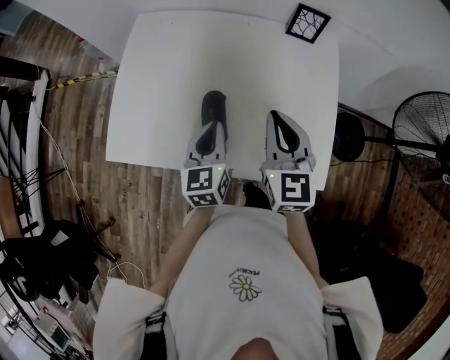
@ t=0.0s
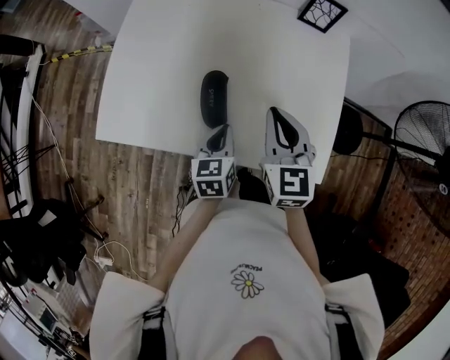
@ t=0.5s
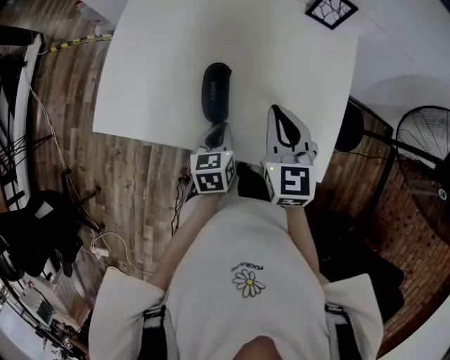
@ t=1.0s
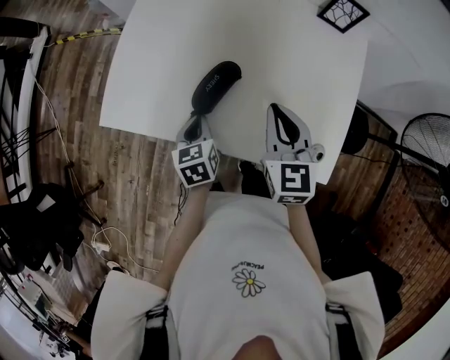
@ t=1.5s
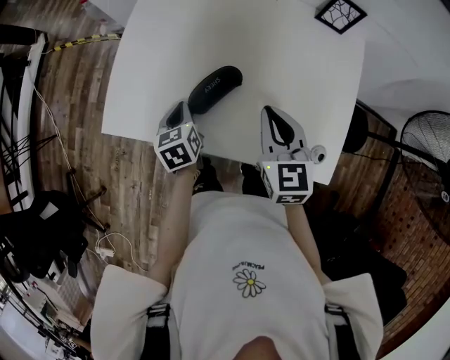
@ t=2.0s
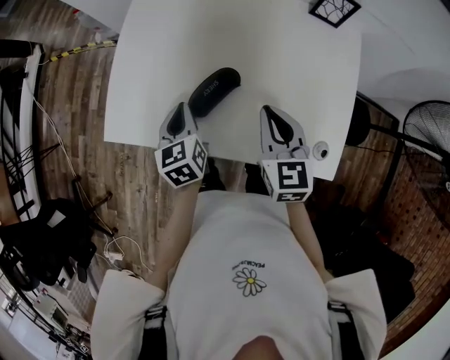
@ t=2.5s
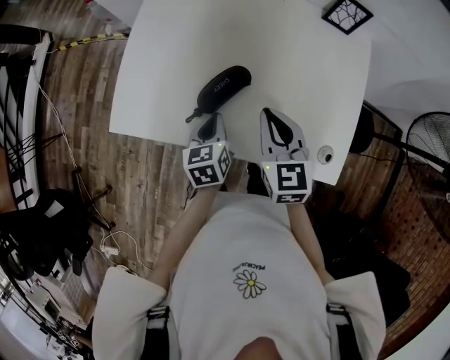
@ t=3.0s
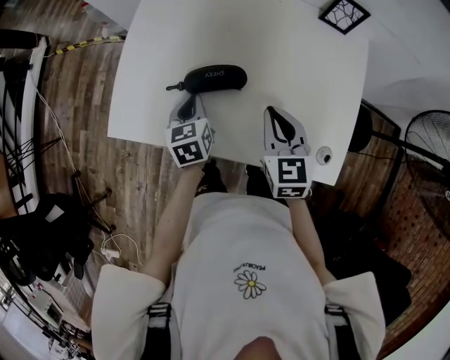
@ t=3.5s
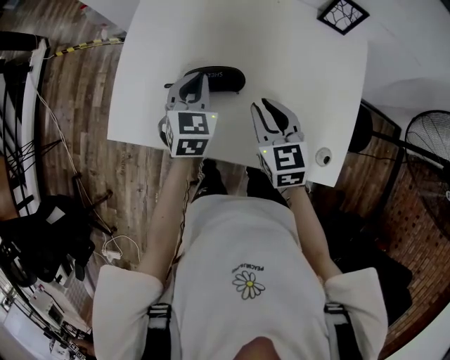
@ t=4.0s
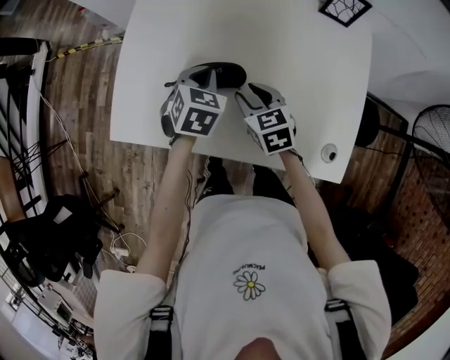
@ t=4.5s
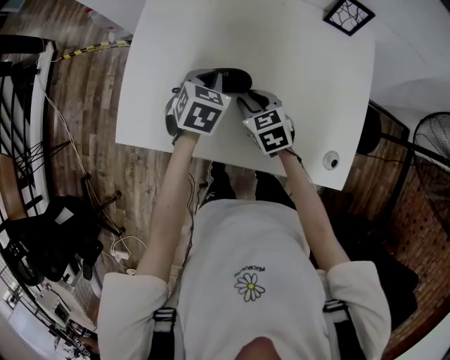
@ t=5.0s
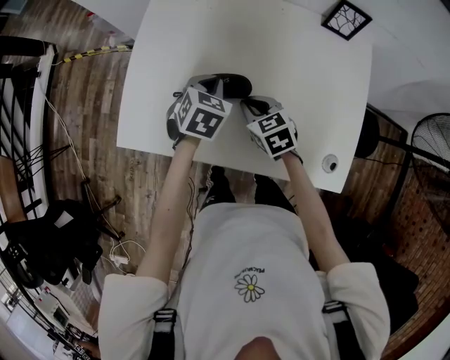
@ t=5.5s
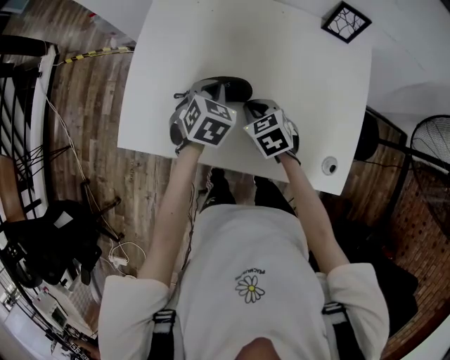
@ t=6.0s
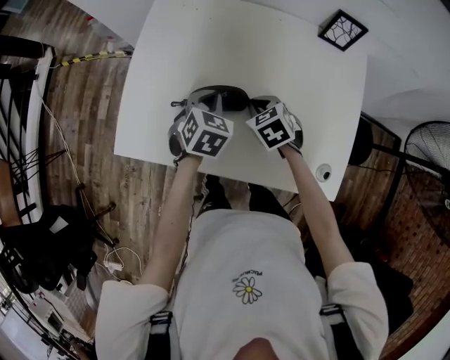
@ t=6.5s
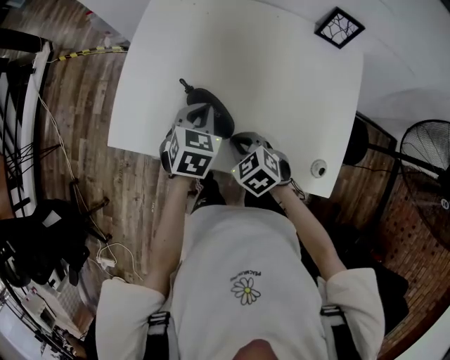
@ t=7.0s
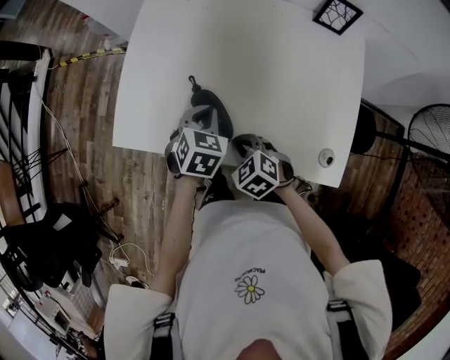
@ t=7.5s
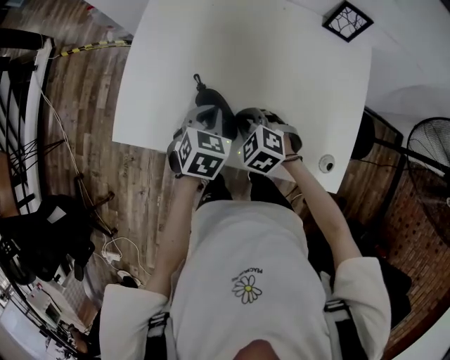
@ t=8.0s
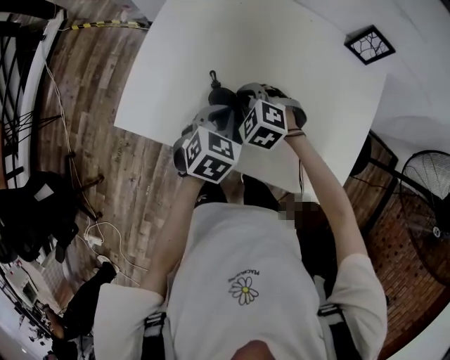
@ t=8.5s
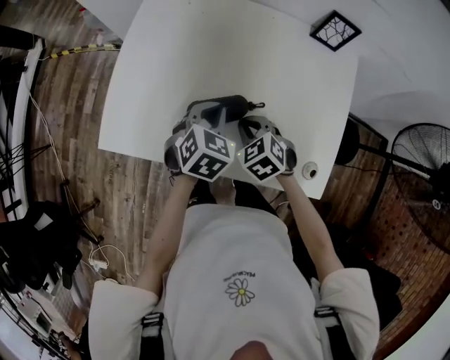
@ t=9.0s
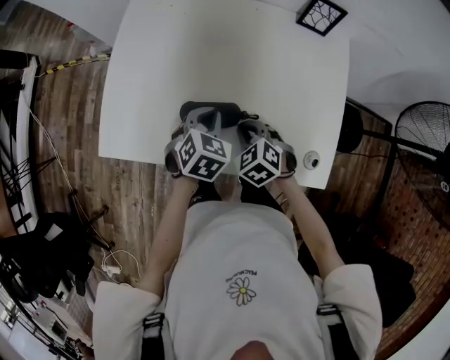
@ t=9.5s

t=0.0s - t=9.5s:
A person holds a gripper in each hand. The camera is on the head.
t=0.0s - t=2.0s: The left gripper travels to the left and downward by some 15 cm, and rotates approximately 30 degrees; the right gripper moves downward and to the left, some 10 cm.
t=2.0s - t=4.0s: The right gripper moves about 5 cm. Meanwhile the left gripper heads upward, forward and to the right, covering roughly 10 cm, and swivels roughly 40 degrees.
t=4.0s - t=5.5s: The right gripper shifts about 10 cm downward. The left gripper rotates some 20 degrees.
t=5.5s - t=7.5s: The right gripper travels backward by about 10 cm, and swivels approximately 30 degrees. Meanwhile the left gripper goes roughly 10 cm backward.
t=7.5s - t=9.5s: Both grippers move to the right, approximately 5 cm. The right gripper goes forward and returns, about 15 cm each way.

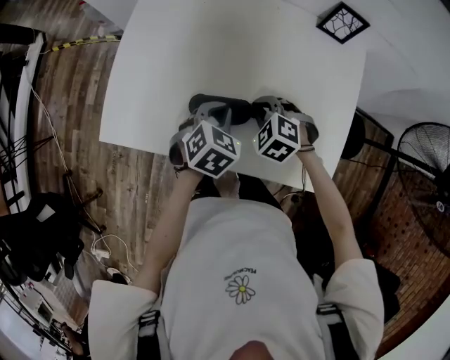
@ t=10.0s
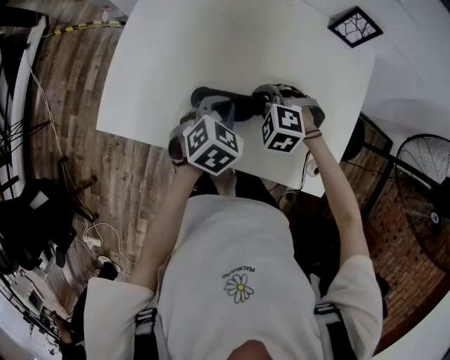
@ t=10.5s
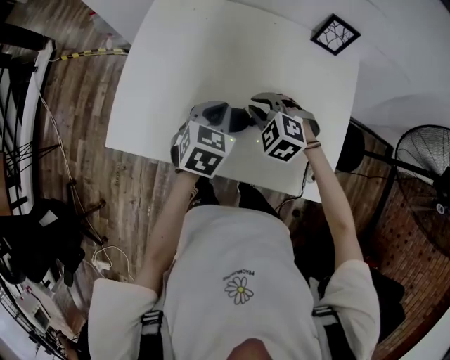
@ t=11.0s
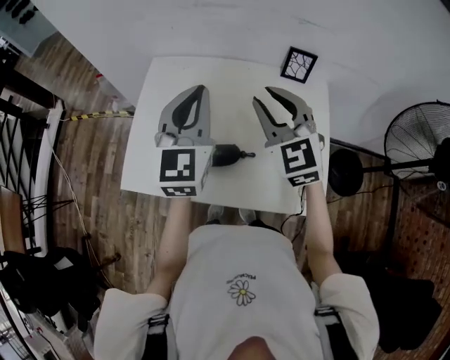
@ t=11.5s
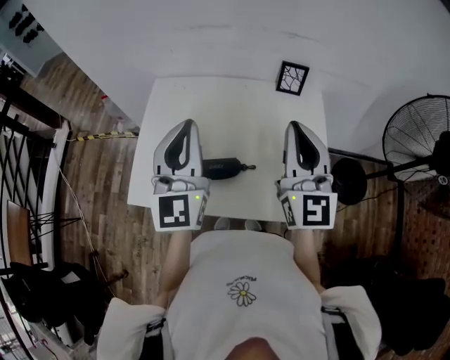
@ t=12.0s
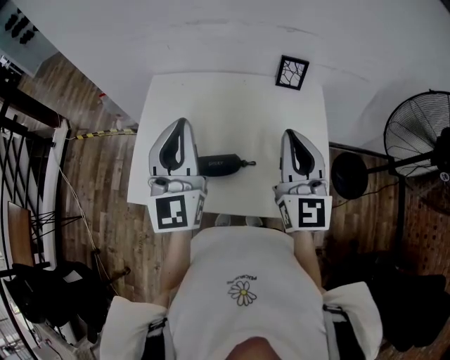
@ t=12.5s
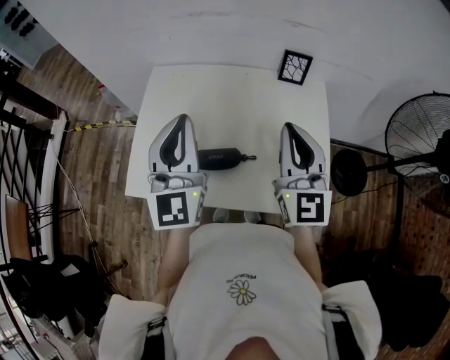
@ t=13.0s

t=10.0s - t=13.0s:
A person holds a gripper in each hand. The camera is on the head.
t=10.0s - t=11.5s: The two grippers go some 30 cm upward. The right gripper tips its fingers upward by about 50 degrees, and opens its fingers; the left gripper angles its fingers upward, by approximately 50 degrees.
t=11.5s - t=13.0s: The left gripper shifts approximately 5 cm backward. The right gripper goes some 10 cm backward and to the right, swivels roughly 30 degrees, and closes.

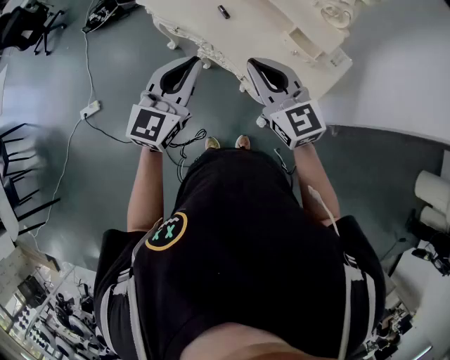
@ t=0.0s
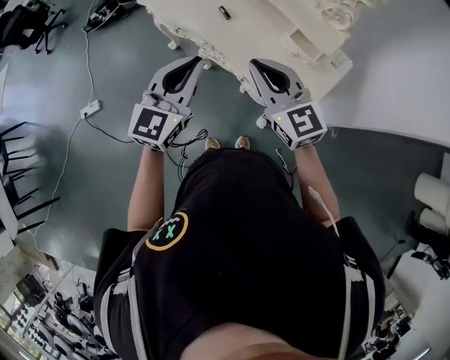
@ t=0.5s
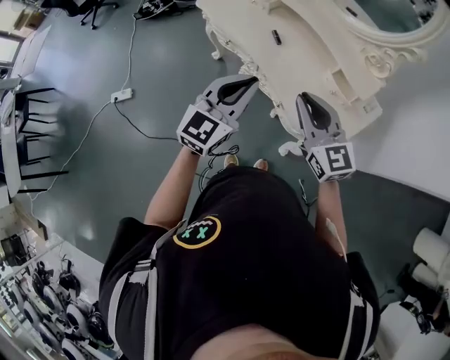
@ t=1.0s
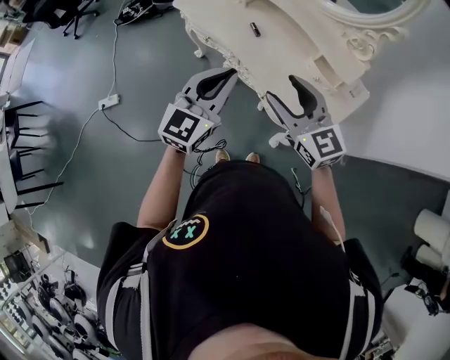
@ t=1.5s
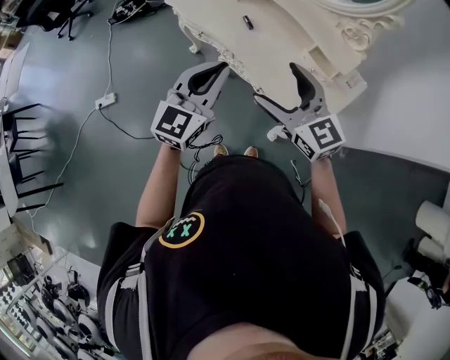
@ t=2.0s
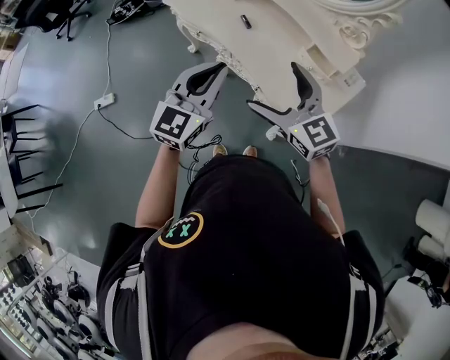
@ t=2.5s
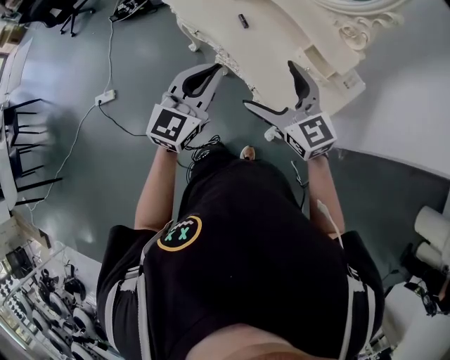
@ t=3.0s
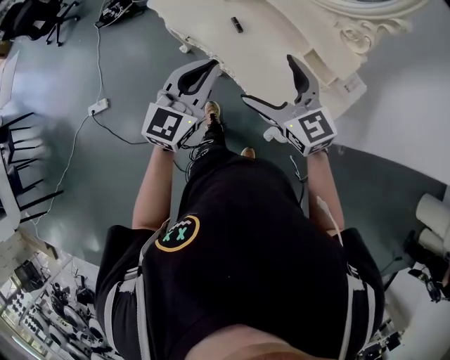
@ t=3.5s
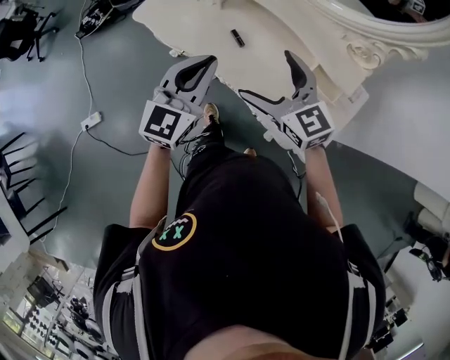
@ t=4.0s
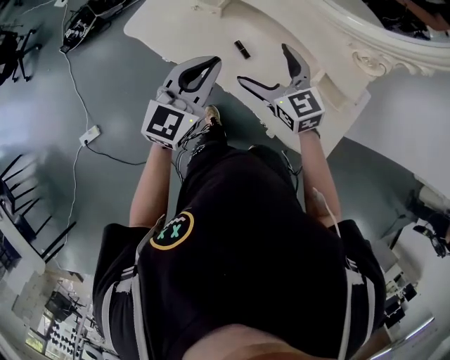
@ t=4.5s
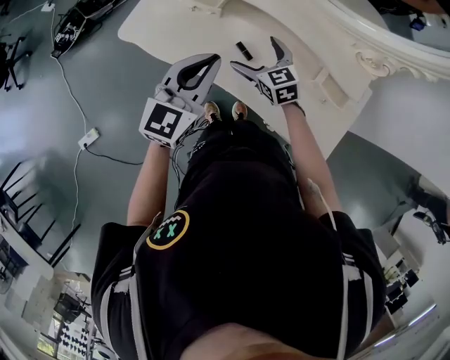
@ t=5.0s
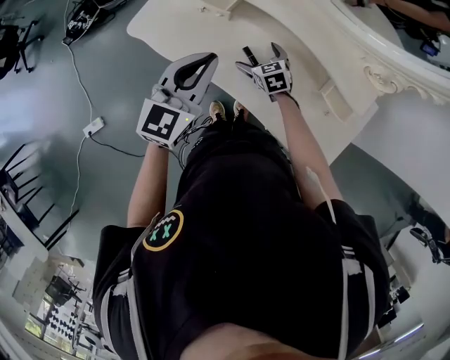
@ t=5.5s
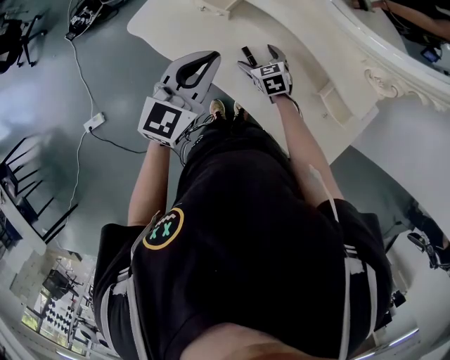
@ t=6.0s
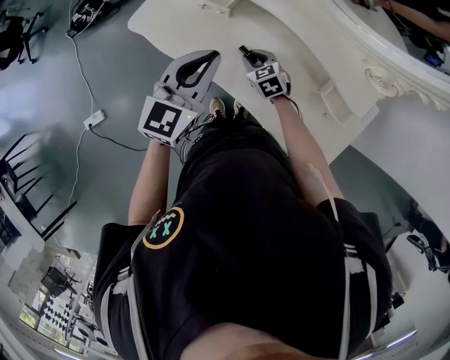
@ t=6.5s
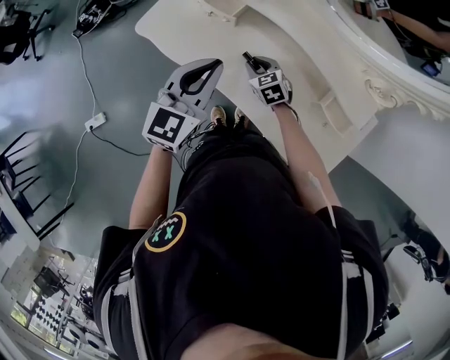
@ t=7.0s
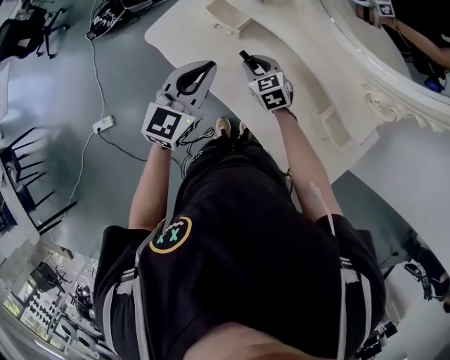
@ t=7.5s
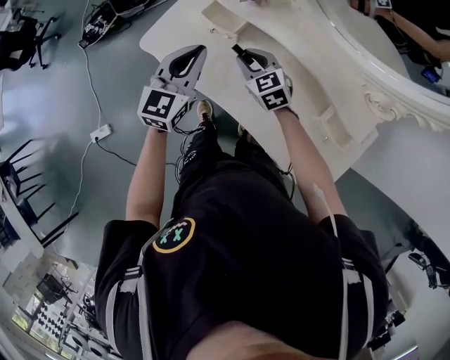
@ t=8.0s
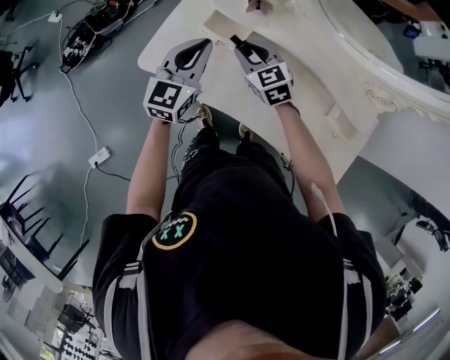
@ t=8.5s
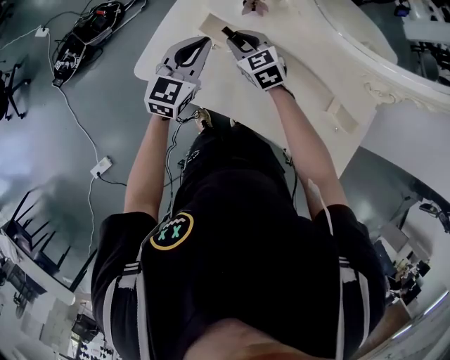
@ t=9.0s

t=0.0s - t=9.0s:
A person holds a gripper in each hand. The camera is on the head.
t=0.0s - t=2.0s: The right gripper opens.
t=2.0s - t=4.5s: The grippers both shift forward by some 30 cm. The right gripper rotates approximately 20 degrees.
t=4.5s - t=7.0s: The right gripper shifts about 20 cm downward, swivels roughly 20 degrees, and closes; the left gripper heads forward, covering about 5 cm.
t=7.0s - t=9.0s: The left gripper goes roughly 20 cm forward. Meanwhile the right gripper goes roughly 25 cm forward, upward and to the left.

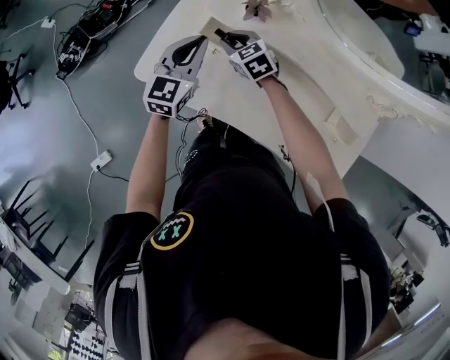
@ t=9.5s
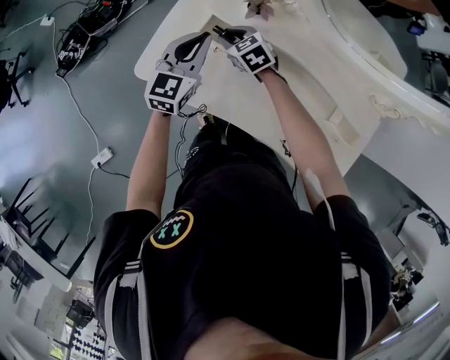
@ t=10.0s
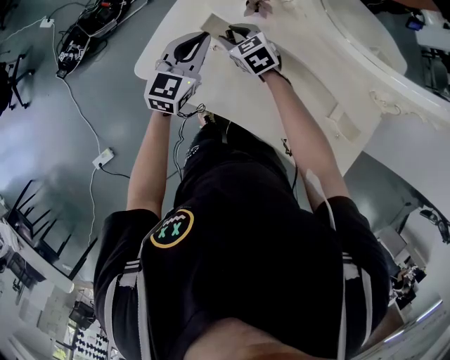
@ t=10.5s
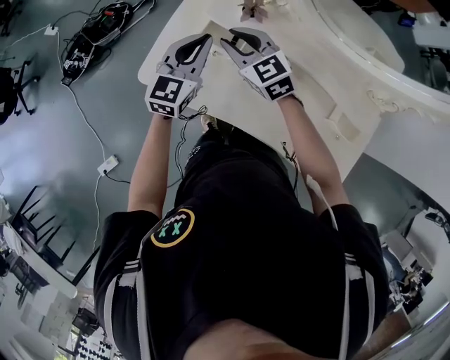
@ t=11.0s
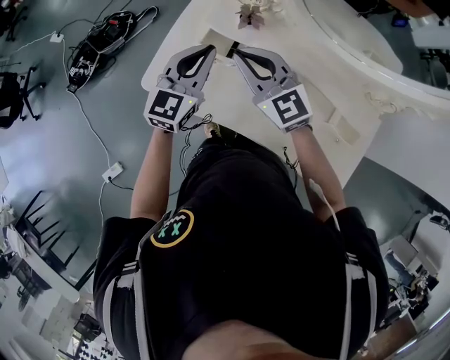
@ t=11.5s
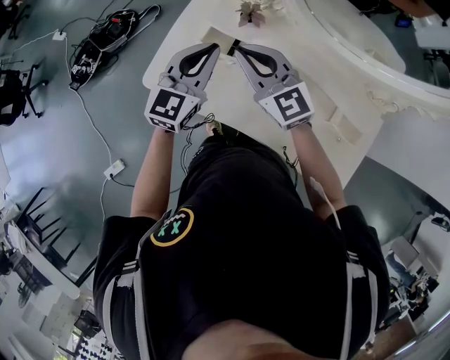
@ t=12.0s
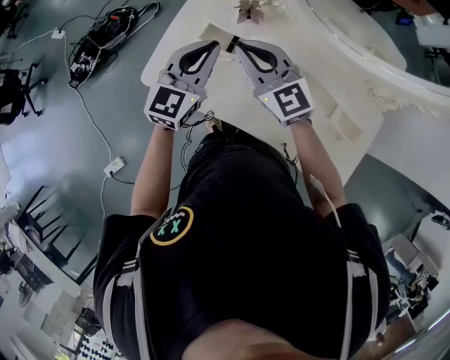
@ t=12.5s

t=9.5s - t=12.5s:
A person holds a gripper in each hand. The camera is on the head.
t=9.5s - t=11.0s: The right gripper shifts about 15 cm upward.
t=11.0s - t=12.5s: The left gripper goes roughly 5 cm upward; the right gripper shifts roughly 10 cm upward.

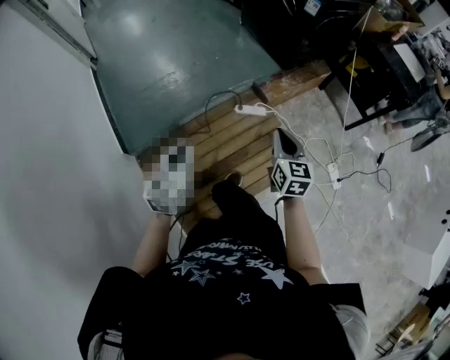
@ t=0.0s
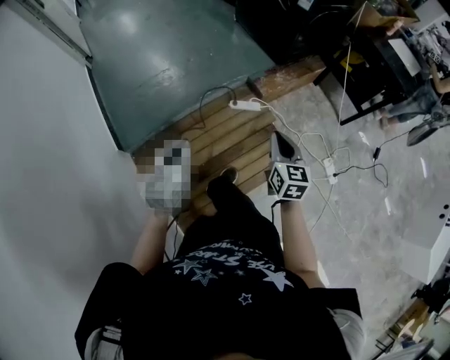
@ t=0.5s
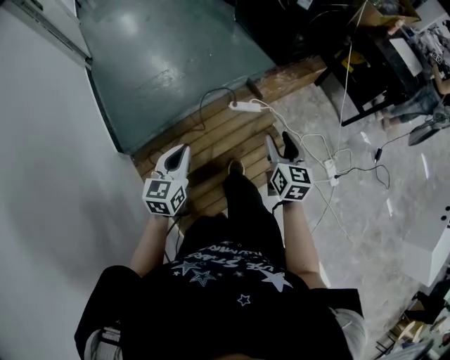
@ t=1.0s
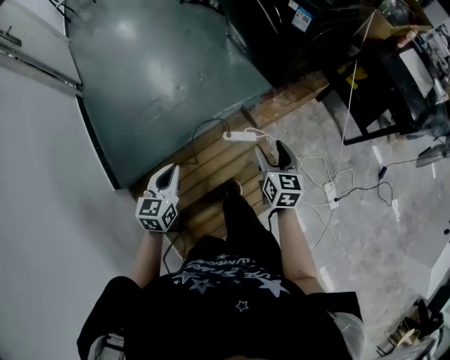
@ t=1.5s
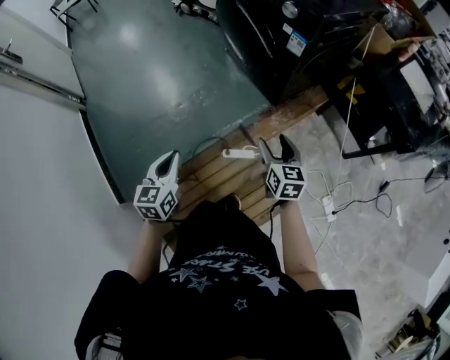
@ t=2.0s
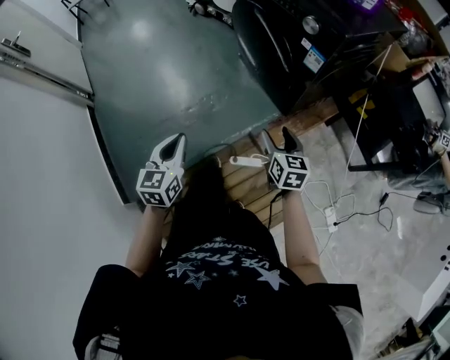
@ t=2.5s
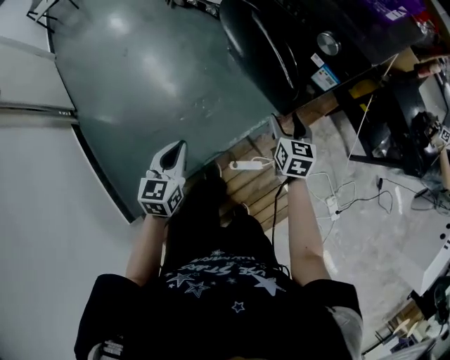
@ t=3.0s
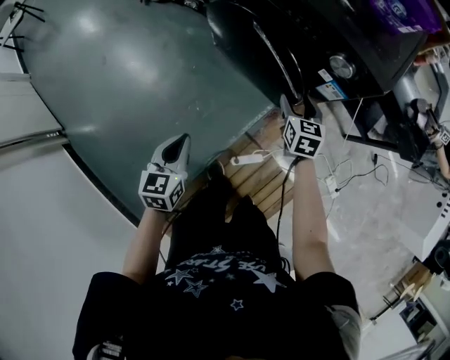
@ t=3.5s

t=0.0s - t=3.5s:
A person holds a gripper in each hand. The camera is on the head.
t=0.0s - t=2.0s: The grippers both shift forward by about 30 cm. The right gripper opens.
t=2.0s - t=3.5s: Both grippers move forward, approximately 35 cm. The right gripper changes its angle by about 20 degrees.
